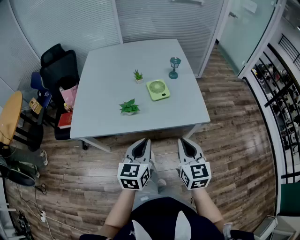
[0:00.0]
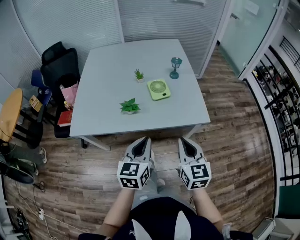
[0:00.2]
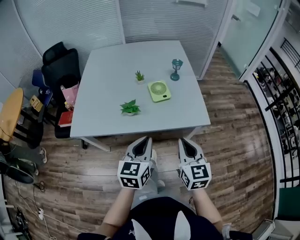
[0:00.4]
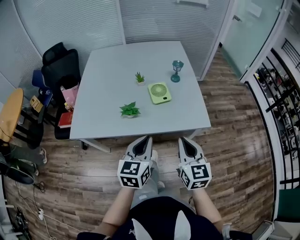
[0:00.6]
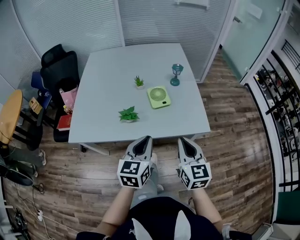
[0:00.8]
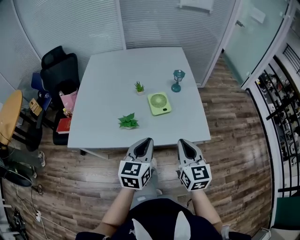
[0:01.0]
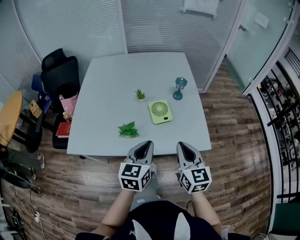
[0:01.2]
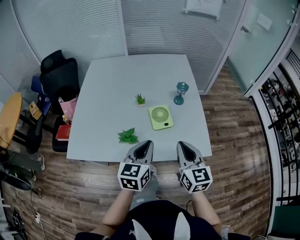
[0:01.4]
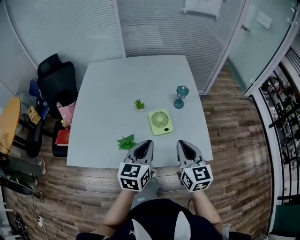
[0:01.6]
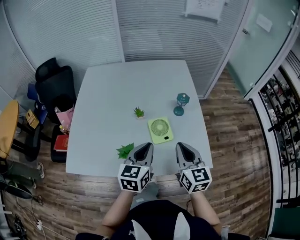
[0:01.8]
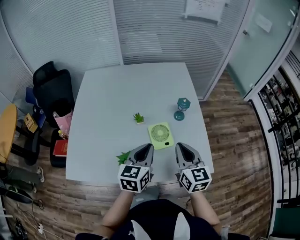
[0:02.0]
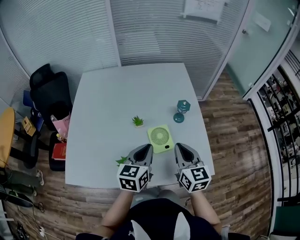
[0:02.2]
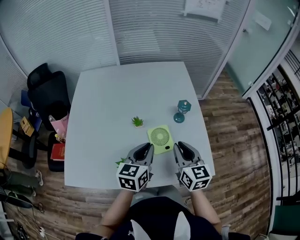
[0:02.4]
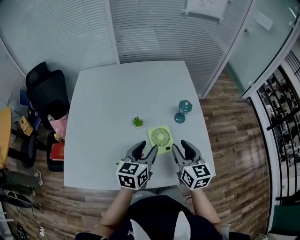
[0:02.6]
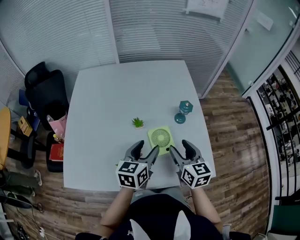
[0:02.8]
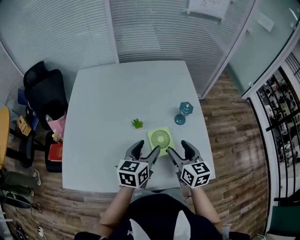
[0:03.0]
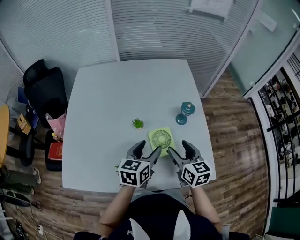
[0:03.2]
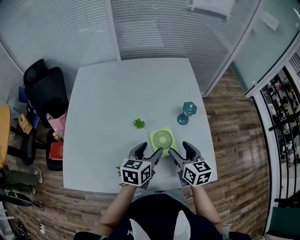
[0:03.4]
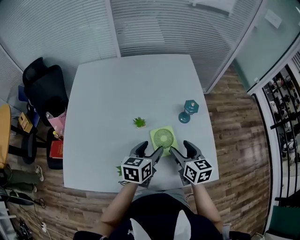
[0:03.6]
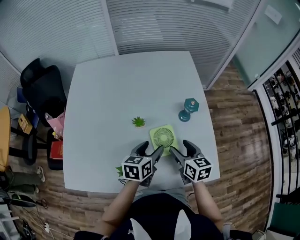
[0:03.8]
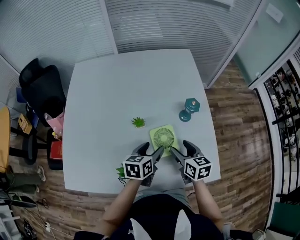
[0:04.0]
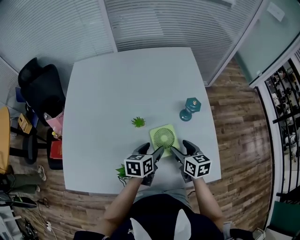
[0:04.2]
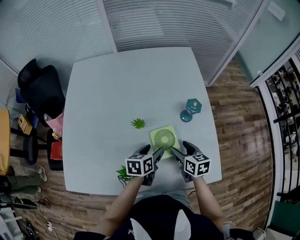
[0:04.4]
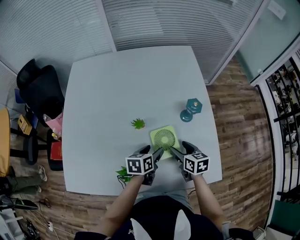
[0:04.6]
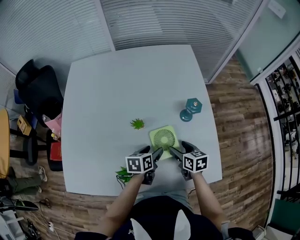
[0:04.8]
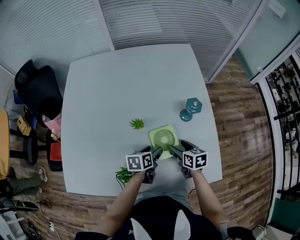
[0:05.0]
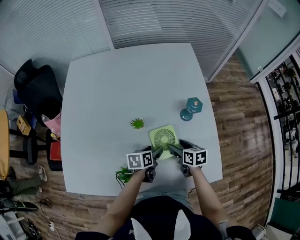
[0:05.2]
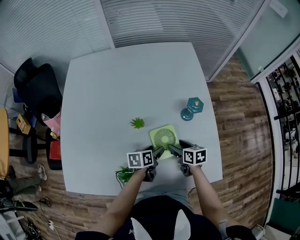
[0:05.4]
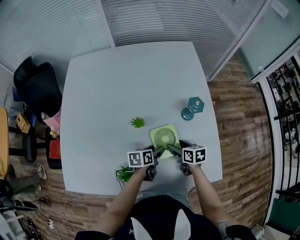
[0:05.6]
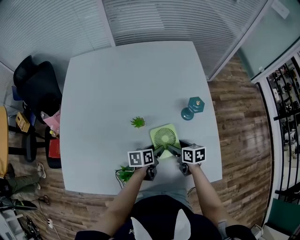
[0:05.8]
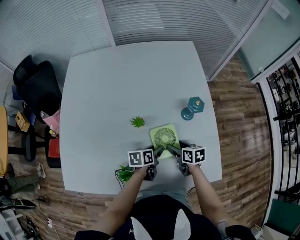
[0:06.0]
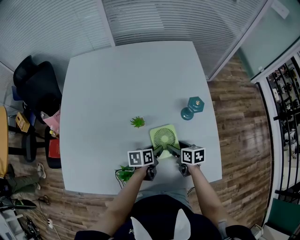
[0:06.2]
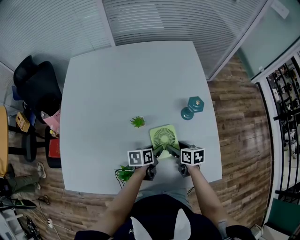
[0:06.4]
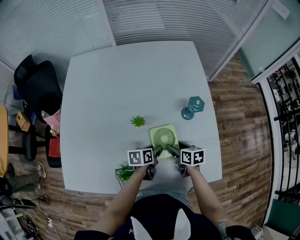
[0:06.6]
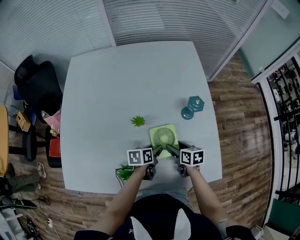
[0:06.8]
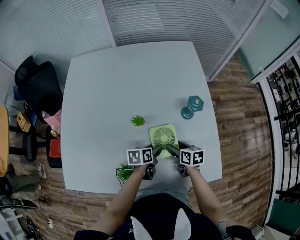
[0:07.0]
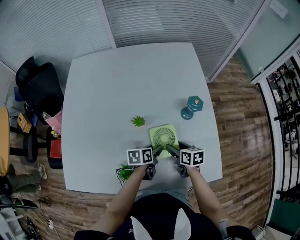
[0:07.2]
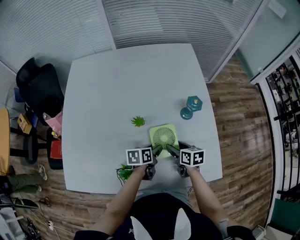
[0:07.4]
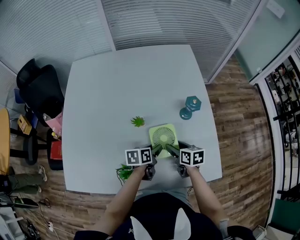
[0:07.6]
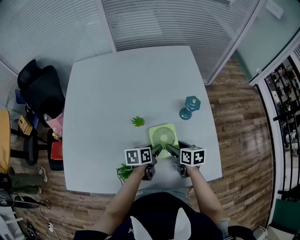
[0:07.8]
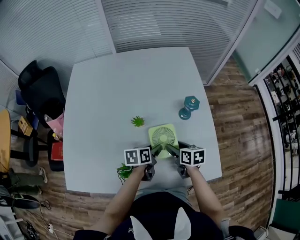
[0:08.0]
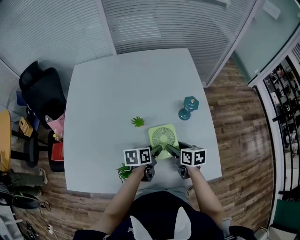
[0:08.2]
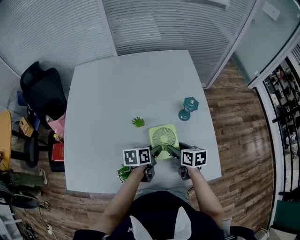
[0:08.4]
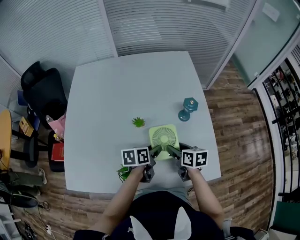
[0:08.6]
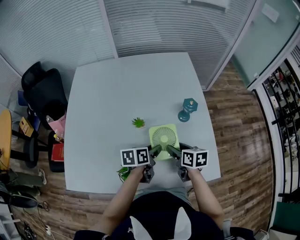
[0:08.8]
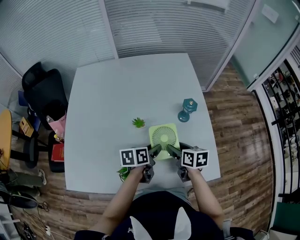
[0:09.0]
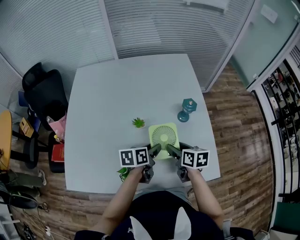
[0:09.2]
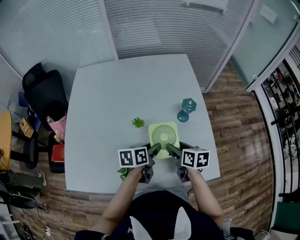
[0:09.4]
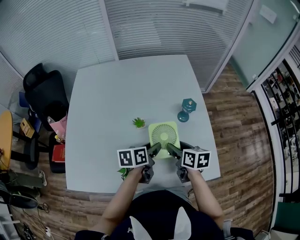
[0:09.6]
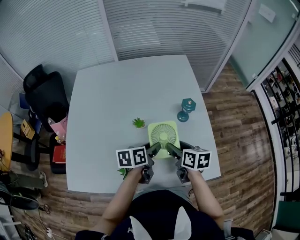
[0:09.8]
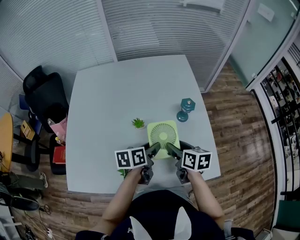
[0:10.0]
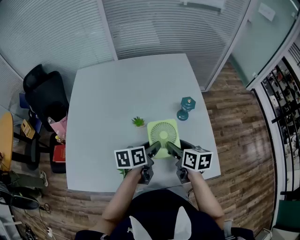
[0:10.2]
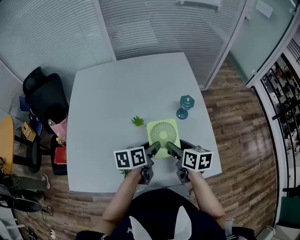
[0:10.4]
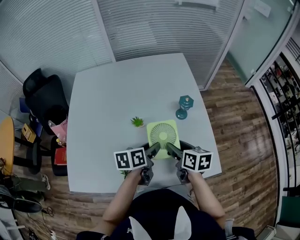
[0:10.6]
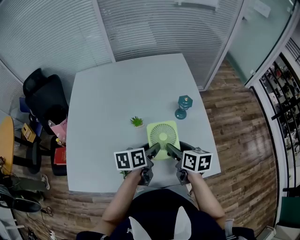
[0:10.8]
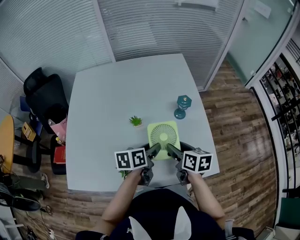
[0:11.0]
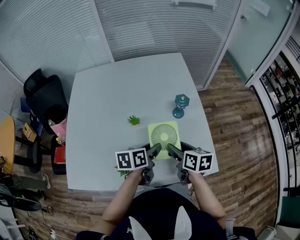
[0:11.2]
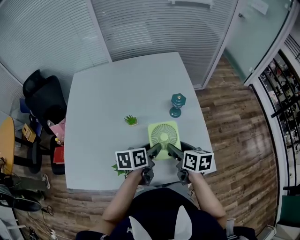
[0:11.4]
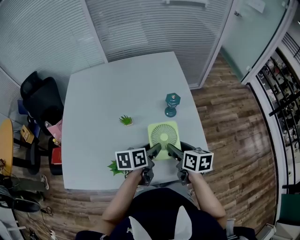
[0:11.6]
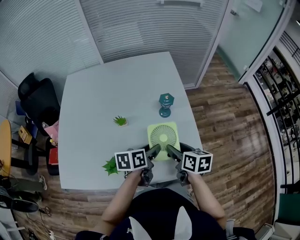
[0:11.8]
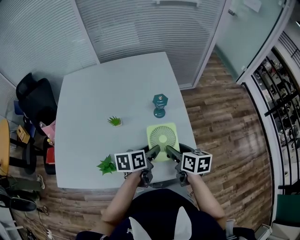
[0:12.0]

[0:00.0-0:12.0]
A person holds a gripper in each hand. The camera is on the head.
0:00.0 to 0:01.6: The two grippers go approximately 20 cm forward.
0:01.6 to 0:03.0: The right gripper moves forward and downward, some 15 cm, and opens. Meanwhile the left gripper moves forward, about 15 cm, and opens.
0:03.0 to 0:04.4: Both grippers travel together downward, approximately 15 cm. The left gripper changes its angle by some 20 degrees. The right gripper turns by roughly 20 degrees.
0:04.4 to 0:06.0: Both grippers move downward, roughly 10 cm.
0:06.0 to 0:07.6: The grippers move only a little.
0:07.6 to 0:09.0: The grippers both shift upward by roughly 10 cm.
0:09.0 to 0:10.4: Both grippers move upward, about 5 cm.
0:10.4 to 0:12.0: The grippers both shift to the right by approximately 15 cm.

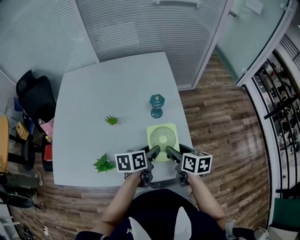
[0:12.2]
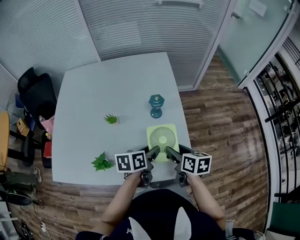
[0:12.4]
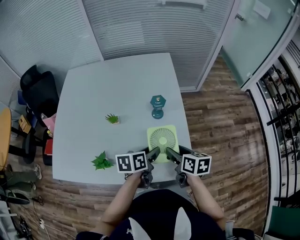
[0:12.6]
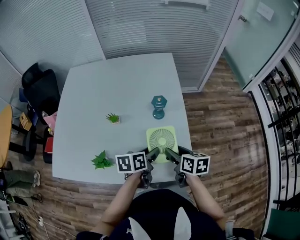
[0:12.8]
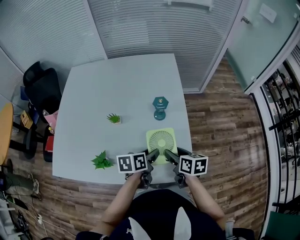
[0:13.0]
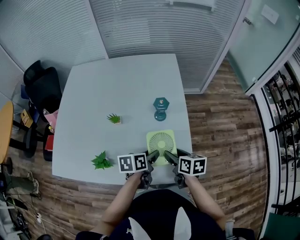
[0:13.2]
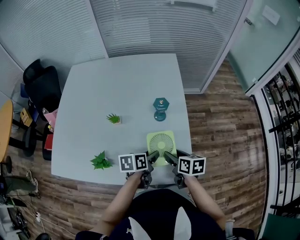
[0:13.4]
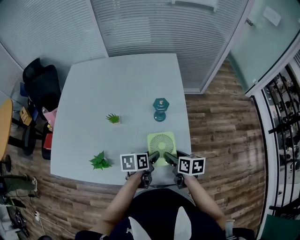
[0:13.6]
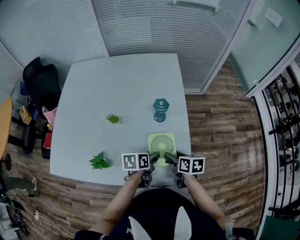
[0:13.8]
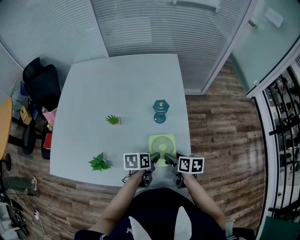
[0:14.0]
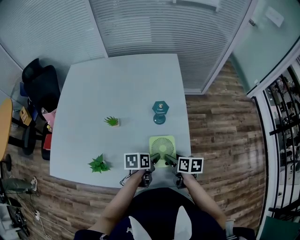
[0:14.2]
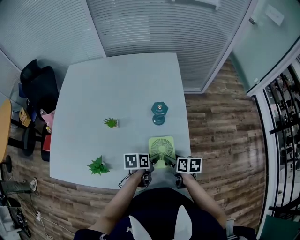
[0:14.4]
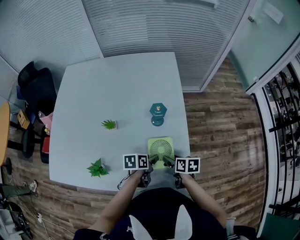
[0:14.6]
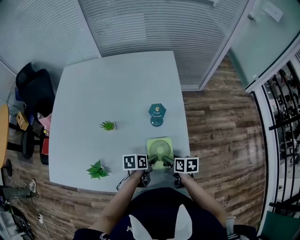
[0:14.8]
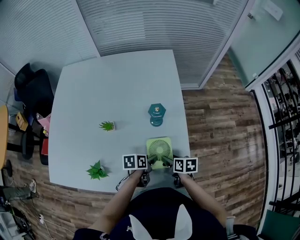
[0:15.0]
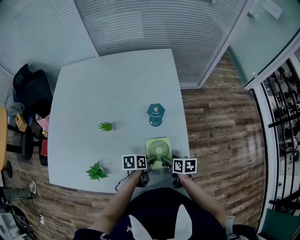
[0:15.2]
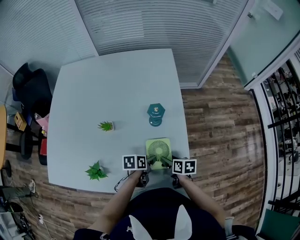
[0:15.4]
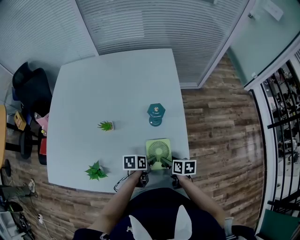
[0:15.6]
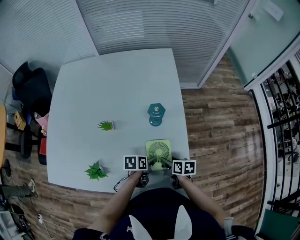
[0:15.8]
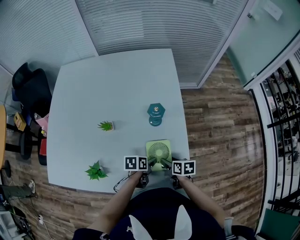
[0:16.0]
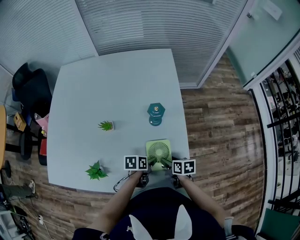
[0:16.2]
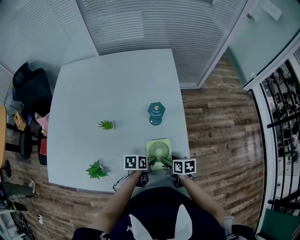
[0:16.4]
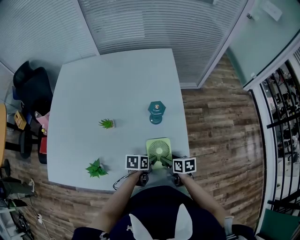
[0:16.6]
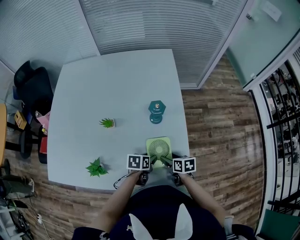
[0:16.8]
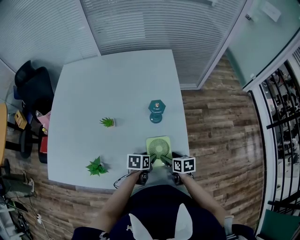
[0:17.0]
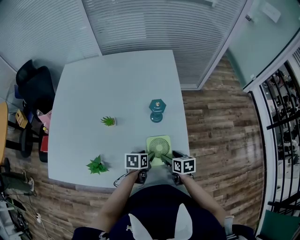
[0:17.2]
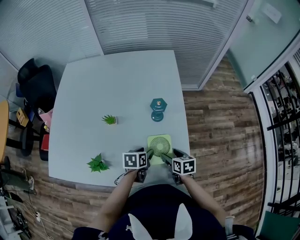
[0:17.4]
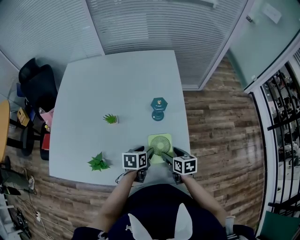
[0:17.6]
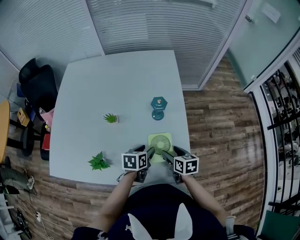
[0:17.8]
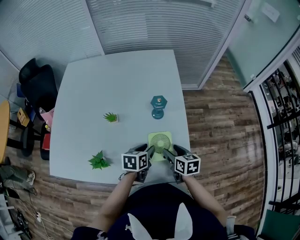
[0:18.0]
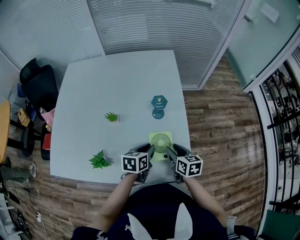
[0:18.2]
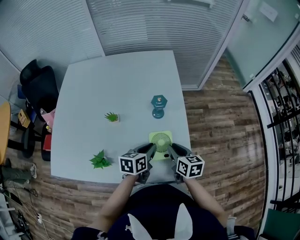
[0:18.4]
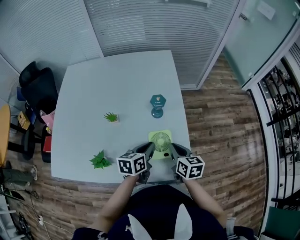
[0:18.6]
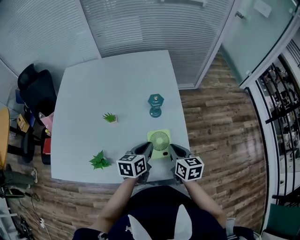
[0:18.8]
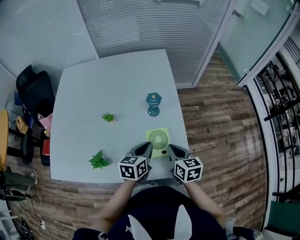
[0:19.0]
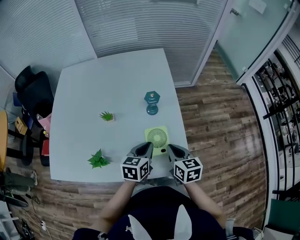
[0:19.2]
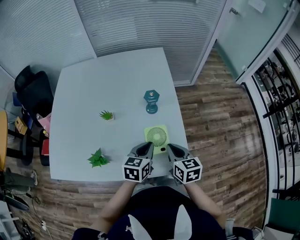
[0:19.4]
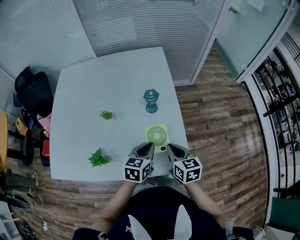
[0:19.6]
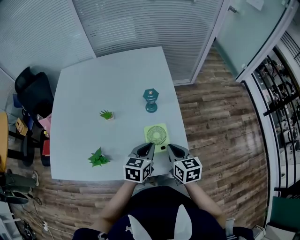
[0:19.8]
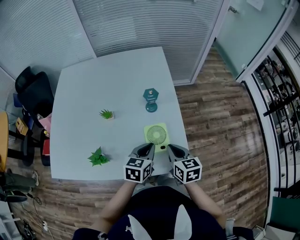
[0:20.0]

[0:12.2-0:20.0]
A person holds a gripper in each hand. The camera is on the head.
0:12.2 to 0:13.8: The two grippers go some 10 cm downward.
0:13.8 to 0:15.4: Both grippers travel together downward, about 10 cm.
0:15.4 to 0:16.8: The grippers stay close to where they were, moving slightly.
0:16.8 to 0:18.4: Both grippers travel together upward, some 15 cm. The right gripper changes its angle by some 20 degrees, and closes, while the left gripper turns by approximately 20 degrees, and closes its fingers.
0:18.4 to 0:20.0: The left gripper moves approximately 5 cm, while the right gripper travels backward by about 5 cm.

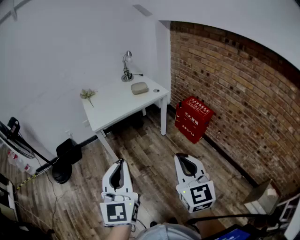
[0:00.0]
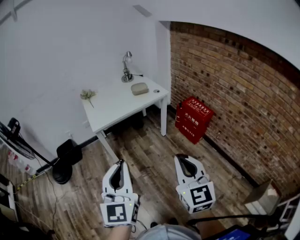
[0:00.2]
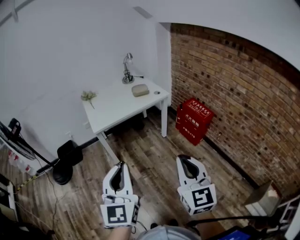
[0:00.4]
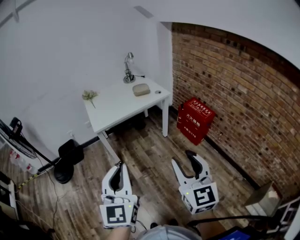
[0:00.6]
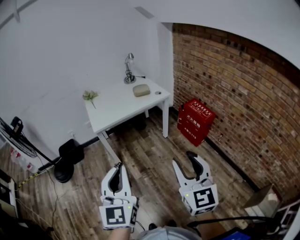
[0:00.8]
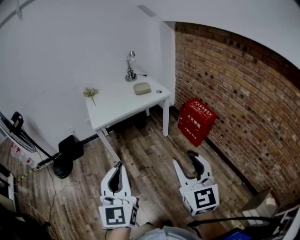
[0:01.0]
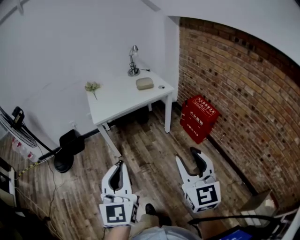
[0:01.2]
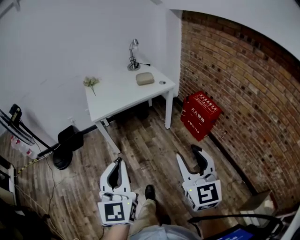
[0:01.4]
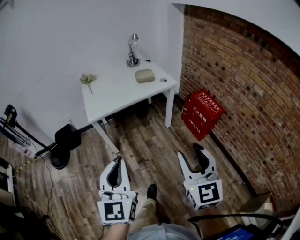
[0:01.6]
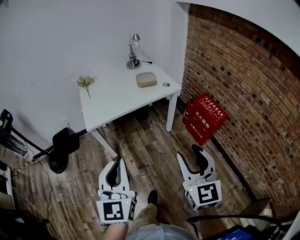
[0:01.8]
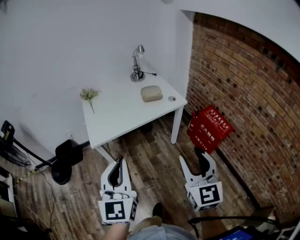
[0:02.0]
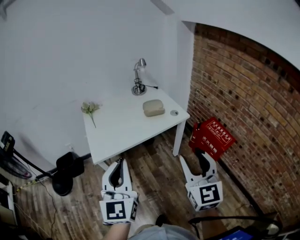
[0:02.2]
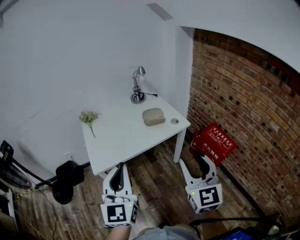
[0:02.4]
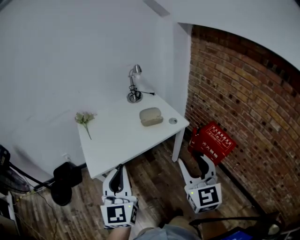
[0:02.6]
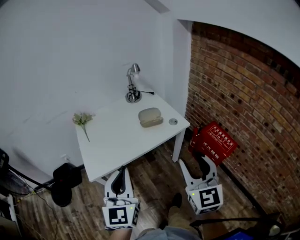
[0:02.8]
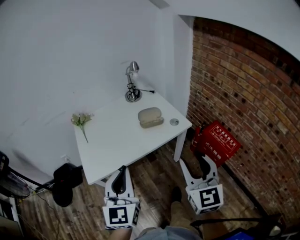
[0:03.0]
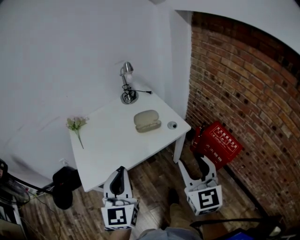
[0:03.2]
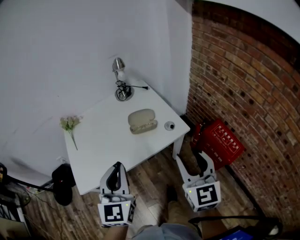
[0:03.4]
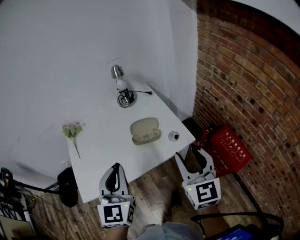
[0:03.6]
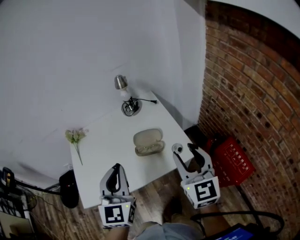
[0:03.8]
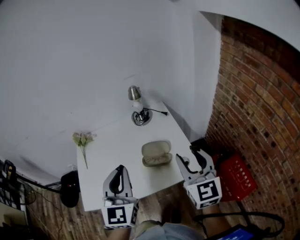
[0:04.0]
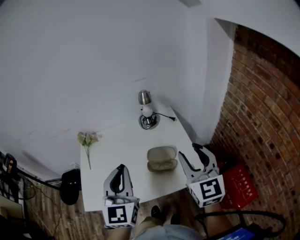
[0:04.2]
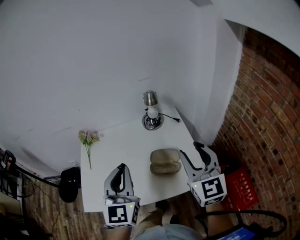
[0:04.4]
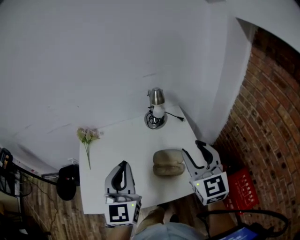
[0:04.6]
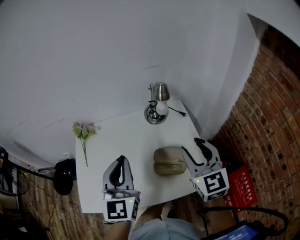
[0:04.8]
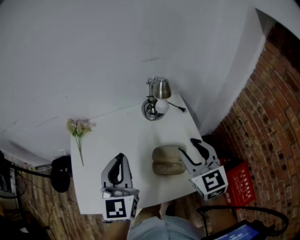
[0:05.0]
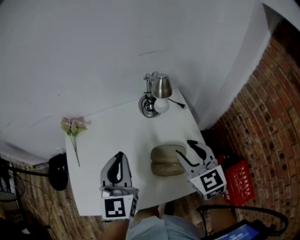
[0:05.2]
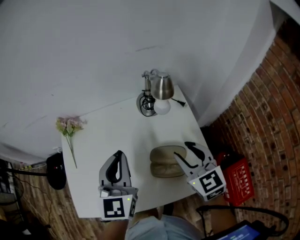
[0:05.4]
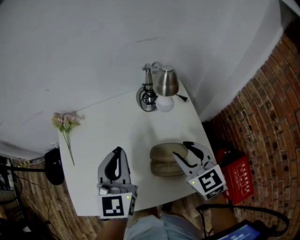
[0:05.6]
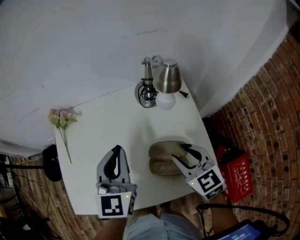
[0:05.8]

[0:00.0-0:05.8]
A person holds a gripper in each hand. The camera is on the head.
0:00.0 to 0:01.4: The left gripper ends up about 5 cm from where it was, while the right gripper goes about 5 cm to the right, and opens up.
0:01.4 to 0:02.8: The two grippers go roughly 40 cm forward.
0:02.8 to 0:04.4: The grippers both shift forward by roughly 35 cm. The right gripper turns by approximately 20 degrees.
0:04.4 to 0:05.8: The right gripper goes some 20 cm downward and forward, and rotates approximately 30 degrees. Meanwhile the left gripper heads forward and downward, covering some 20 cm.
